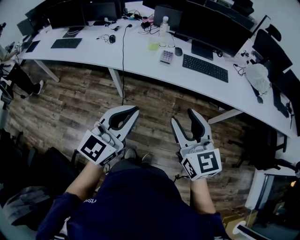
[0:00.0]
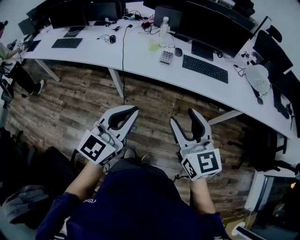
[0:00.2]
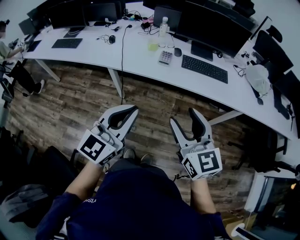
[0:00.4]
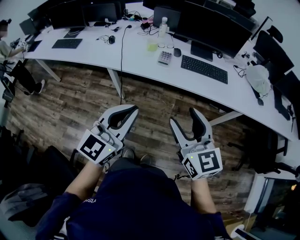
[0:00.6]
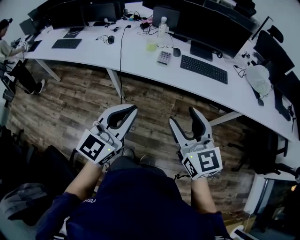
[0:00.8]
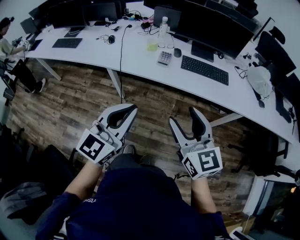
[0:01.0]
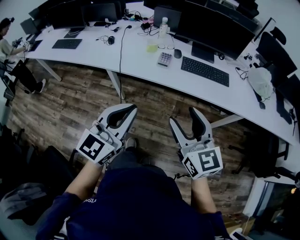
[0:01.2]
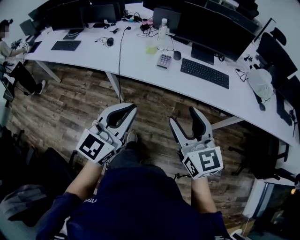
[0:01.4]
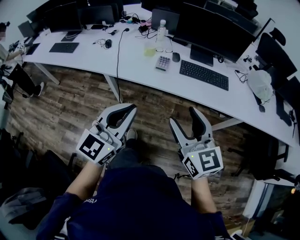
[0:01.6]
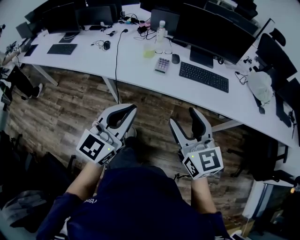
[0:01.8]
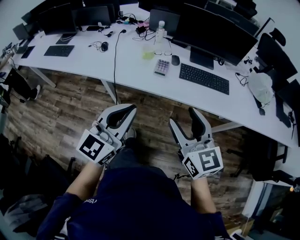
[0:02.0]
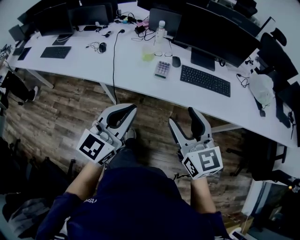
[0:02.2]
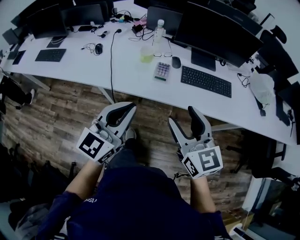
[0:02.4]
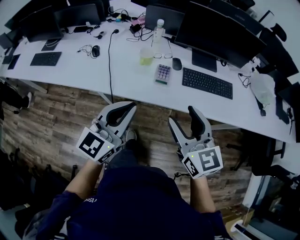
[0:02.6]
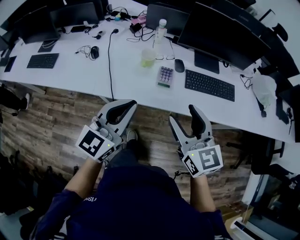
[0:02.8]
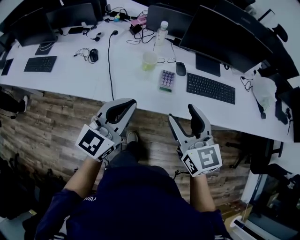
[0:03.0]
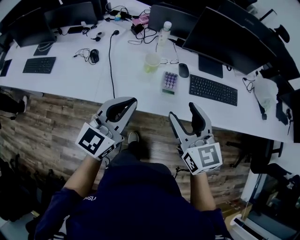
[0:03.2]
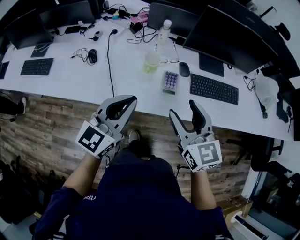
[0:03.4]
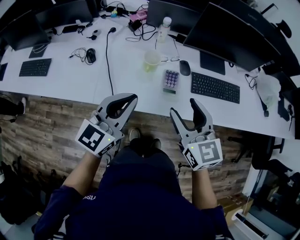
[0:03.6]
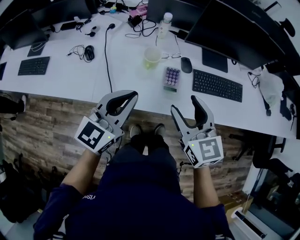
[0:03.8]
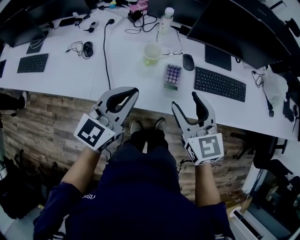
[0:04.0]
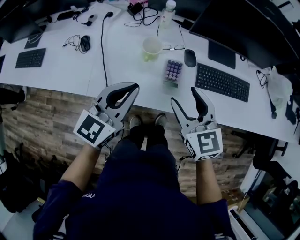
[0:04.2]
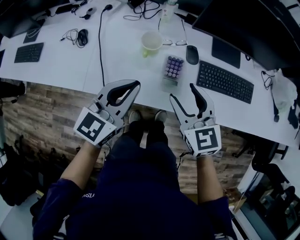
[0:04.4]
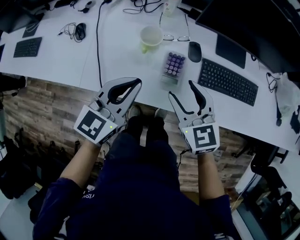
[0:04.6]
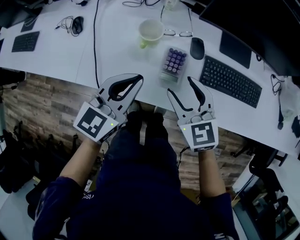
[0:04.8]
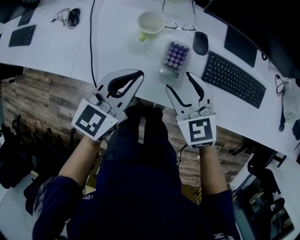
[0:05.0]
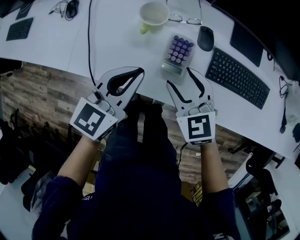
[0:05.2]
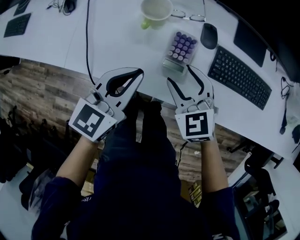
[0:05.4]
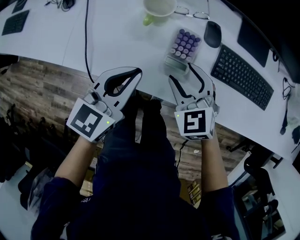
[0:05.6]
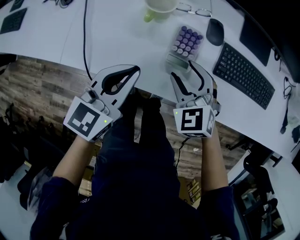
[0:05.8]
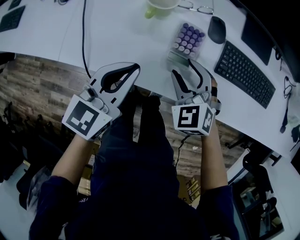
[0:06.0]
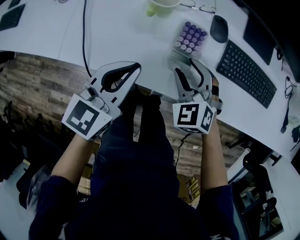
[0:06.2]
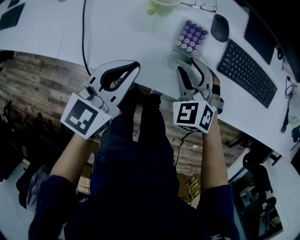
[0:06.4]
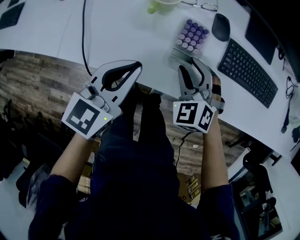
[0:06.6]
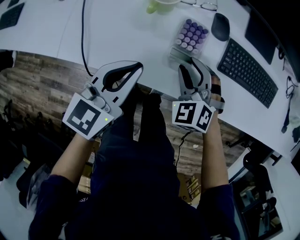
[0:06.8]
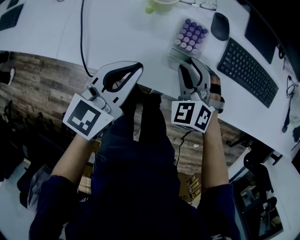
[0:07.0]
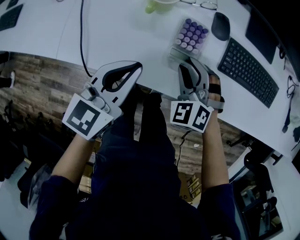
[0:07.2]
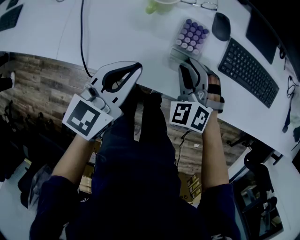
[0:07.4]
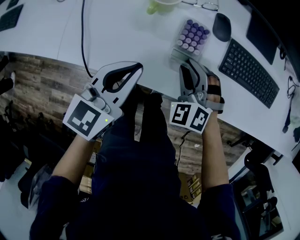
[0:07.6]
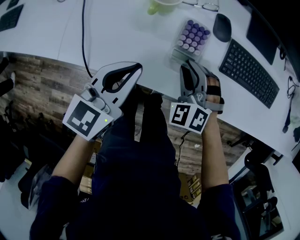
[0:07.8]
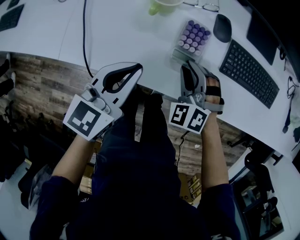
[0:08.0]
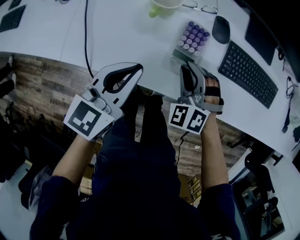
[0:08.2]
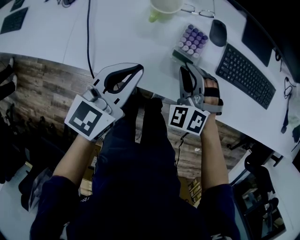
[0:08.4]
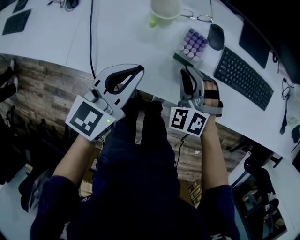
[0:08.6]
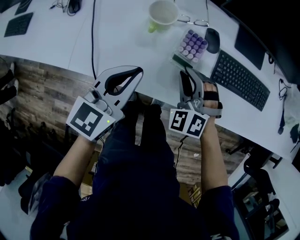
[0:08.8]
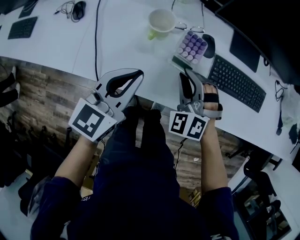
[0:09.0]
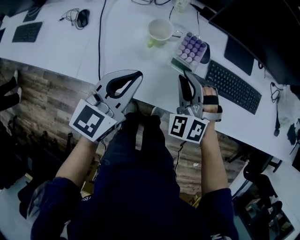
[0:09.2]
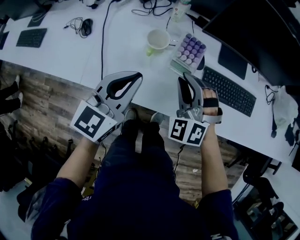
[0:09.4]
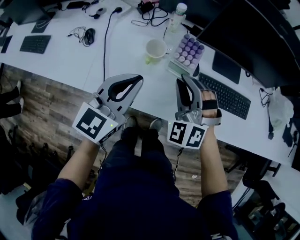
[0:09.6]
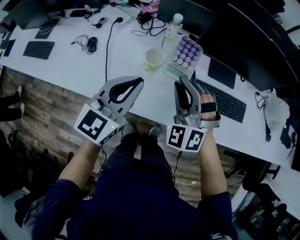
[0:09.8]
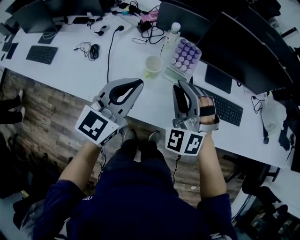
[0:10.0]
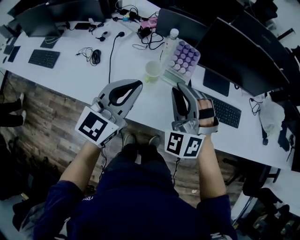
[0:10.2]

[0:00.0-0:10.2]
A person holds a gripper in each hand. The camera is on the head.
0:00.0 to 0:01.4: The grippers both shift forward by some 5 cm.
0:01.4 to 0:03.0: Both grippers travel together forward and to the left, roughly 30 cm.
0:03.0 to 0:04.4: The two grippers go roughly 15 cm forward and downward.
0:04.4 to 0:05.8: Both grippers move downward, approximately 15 cm. The right gripper rotates about 30 degrees.
0:05.8 to 0:07.2: The grippers stay close to where they were, moving slightly.
0:07.2 to 0:08.8: The left gripper moves approximately 5 cm, while the right gripper travels upward by about 5 cm.
0:08.8 to 0:10.2: The grippers both shift upward by about 25 cm. The right gripper rotates approximately 20 degrees. The left gripper changes its angle by approximately 20 degrees.

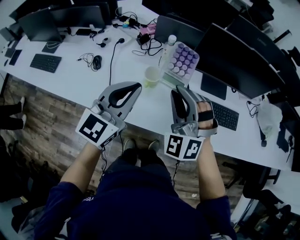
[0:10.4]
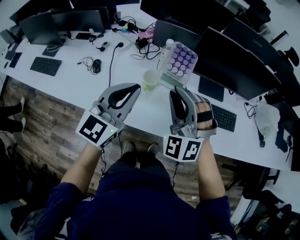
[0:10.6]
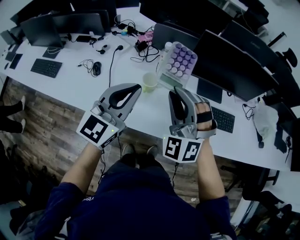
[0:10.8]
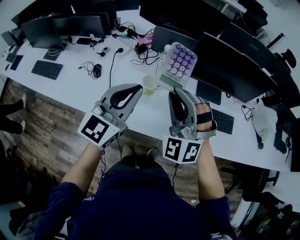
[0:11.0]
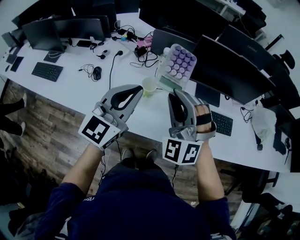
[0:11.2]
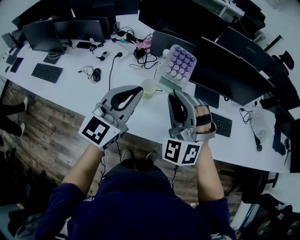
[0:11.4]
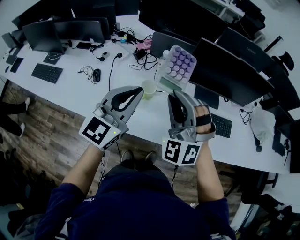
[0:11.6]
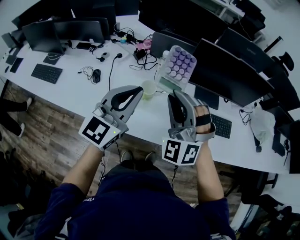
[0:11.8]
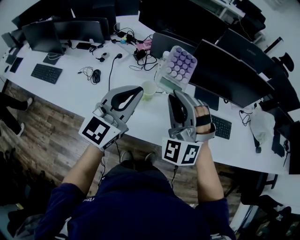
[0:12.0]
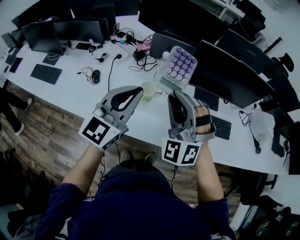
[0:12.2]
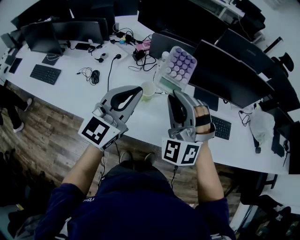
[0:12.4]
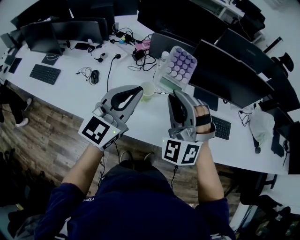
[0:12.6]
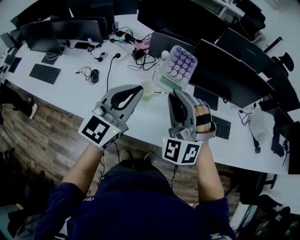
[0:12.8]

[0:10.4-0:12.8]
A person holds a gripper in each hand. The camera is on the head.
0:10.4 to 0:11.6: The right gripper travels upward by about 5 cm.
0:11.6 to 0:12.8: There are only small adjustments of the grippers.

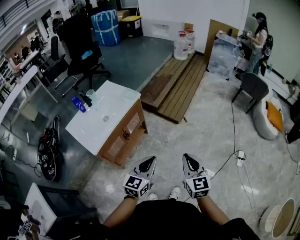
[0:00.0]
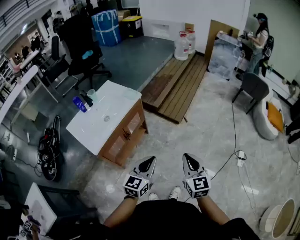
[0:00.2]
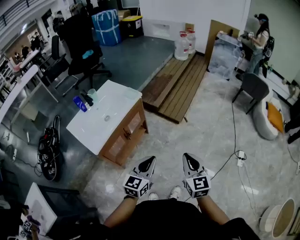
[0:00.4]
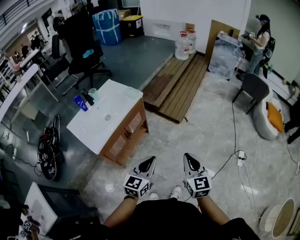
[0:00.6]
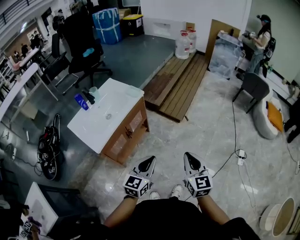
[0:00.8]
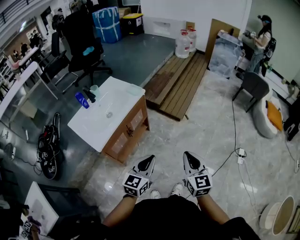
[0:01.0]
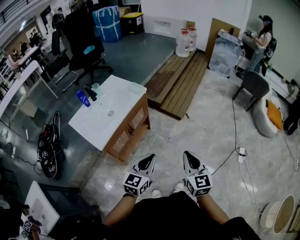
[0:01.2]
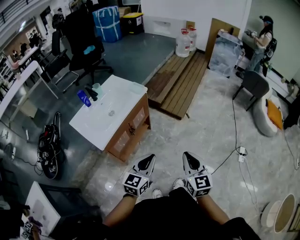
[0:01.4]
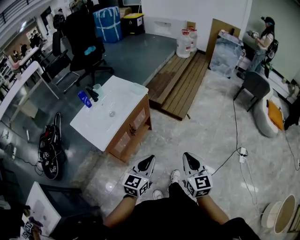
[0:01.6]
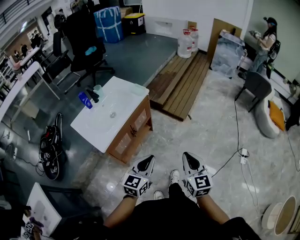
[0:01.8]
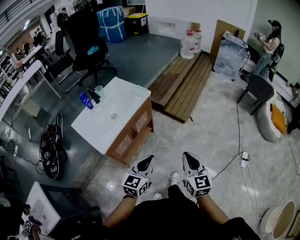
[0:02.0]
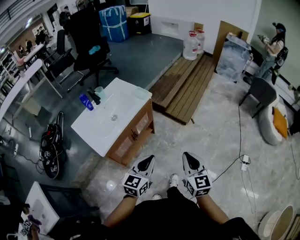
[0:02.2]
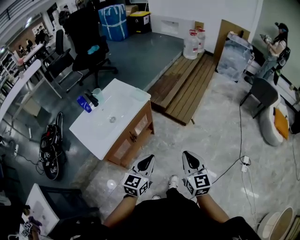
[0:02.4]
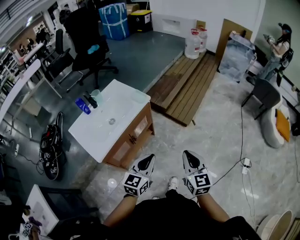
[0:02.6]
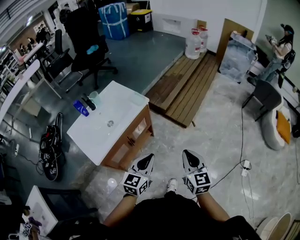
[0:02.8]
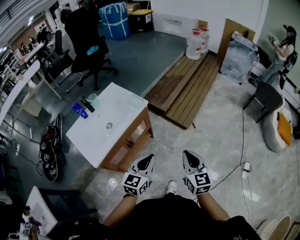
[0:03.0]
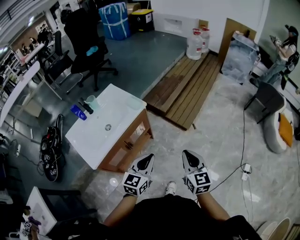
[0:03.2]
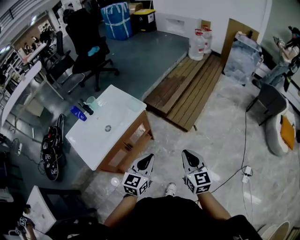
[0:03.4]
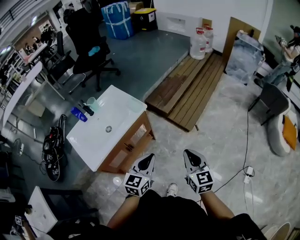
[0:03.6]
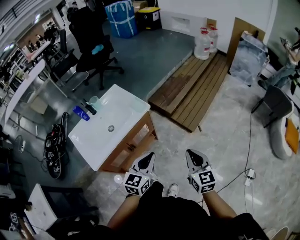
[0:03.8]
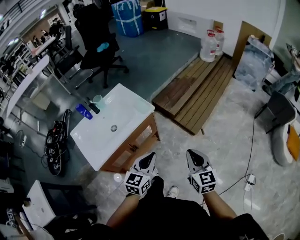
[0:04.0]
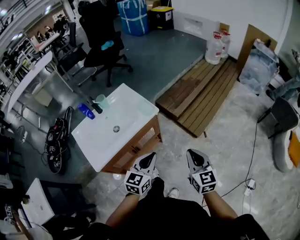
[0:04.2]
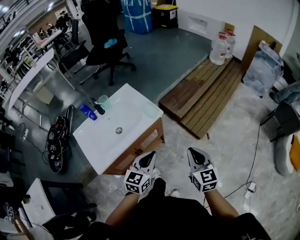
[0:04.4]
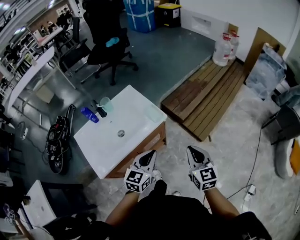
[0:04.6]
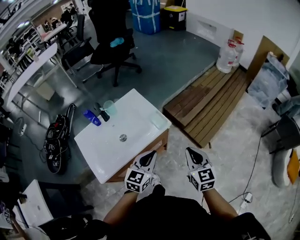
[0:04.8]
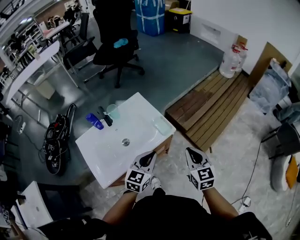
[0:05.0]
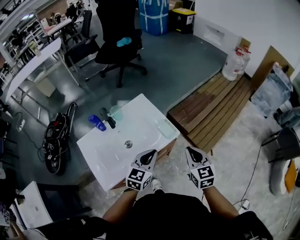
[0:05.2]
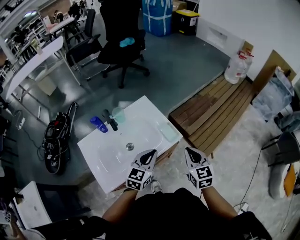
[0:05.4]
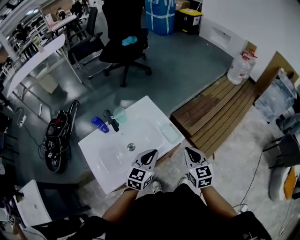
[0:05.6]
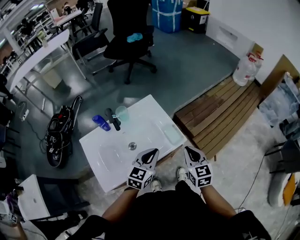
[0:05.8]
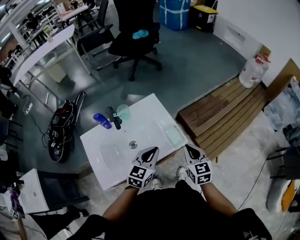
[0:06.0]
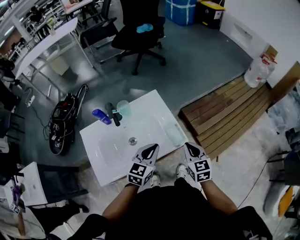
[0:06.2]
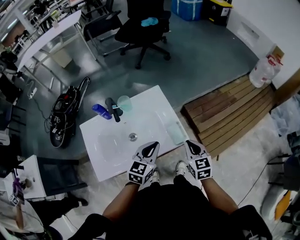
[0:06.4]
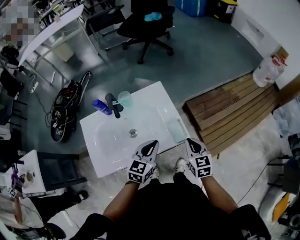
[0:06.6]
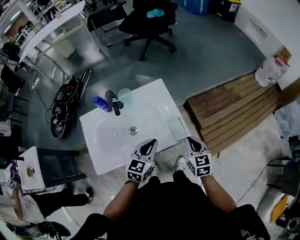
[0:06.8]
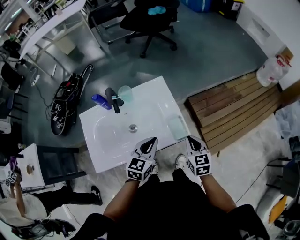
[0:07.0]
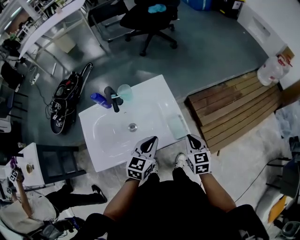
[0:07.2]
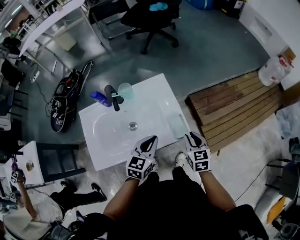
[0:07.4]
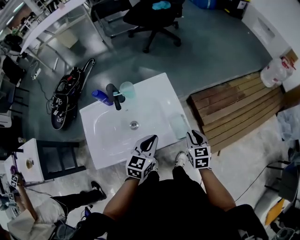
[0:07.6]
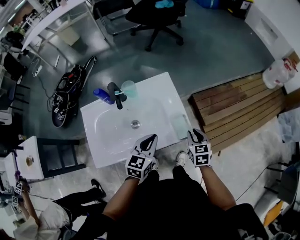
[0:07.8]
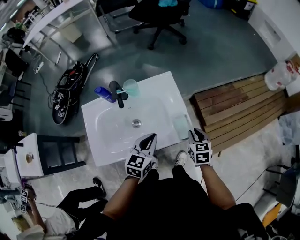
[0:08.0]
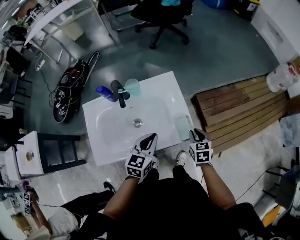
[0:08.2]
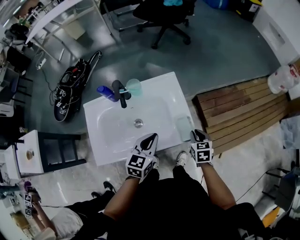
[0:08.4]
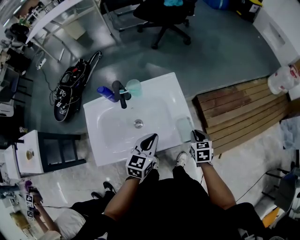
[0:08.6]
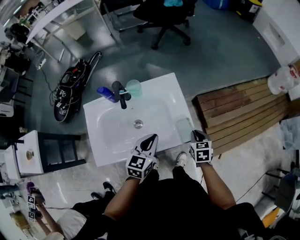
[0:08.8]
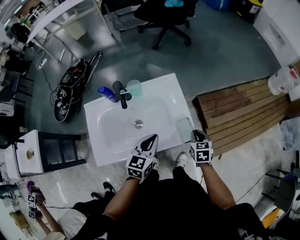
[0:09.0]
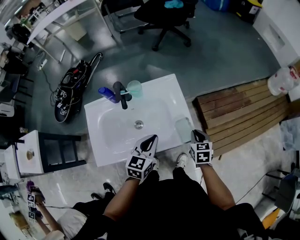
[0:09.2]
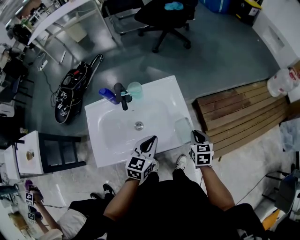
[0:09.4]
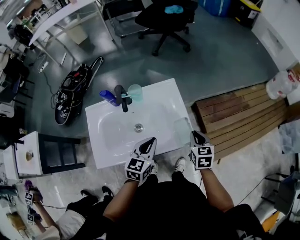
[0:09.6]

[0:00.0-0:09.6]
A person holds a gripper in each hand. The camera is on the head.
0:00.0 to 0:01.6: The grippers both shift to the left by roughly 5 cm.
0:01.6 to 0:03.2: The two grippers go approximately 20 cm forward.
0:03.2 to 0:04.8: The two grippers go approximately 20 cm forward and to the left.
0:04.8 to 0:06.4: The right gripper is displaced forward, downward and to the left by some 20 cm, and rotates roughly 20 degrees, while the left gripper heads forward and to the left, covering some 15 cm.
0:06.4 to 0:08.0: The right gripper goes about 10 cm downward.
0:08.0 to 0:09.6: The right gripper moves about 5 cm.

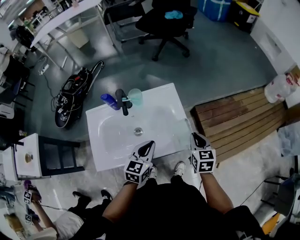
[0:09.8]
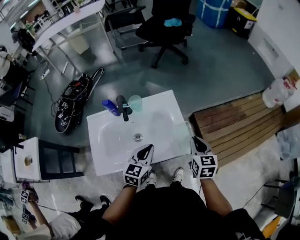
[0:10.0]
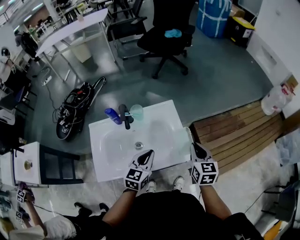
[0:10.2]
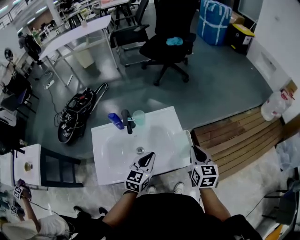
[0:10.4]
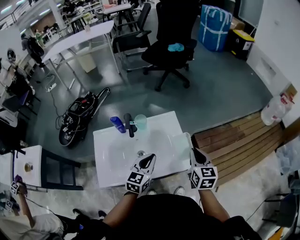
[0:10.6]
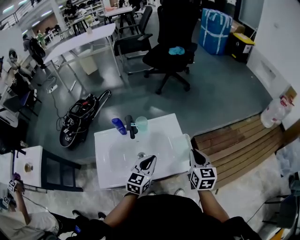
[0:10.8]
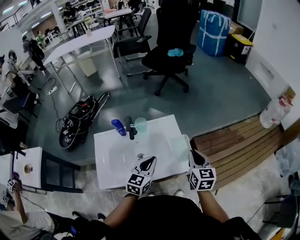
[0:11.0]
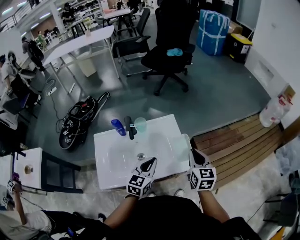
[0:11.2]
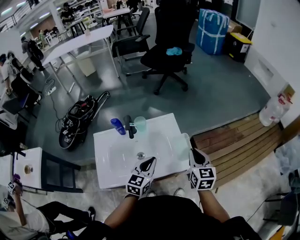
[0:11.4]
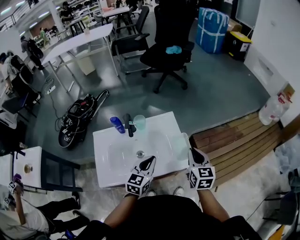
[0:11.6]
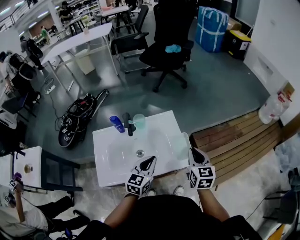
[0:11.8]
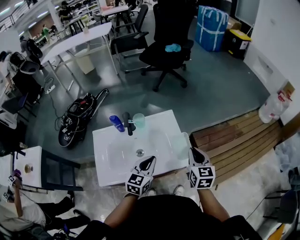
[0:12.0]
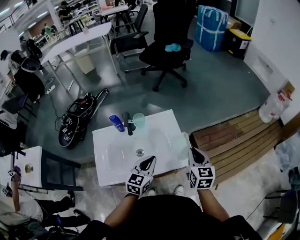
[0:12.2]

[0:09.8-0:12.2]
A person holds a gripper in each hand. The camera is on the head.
0:09.8 to 0:11.0: The left gripper travels upward by approximately 5 cm. Meanwhile the right gripper heads upward, covering approximately 10 cm.
0:11.0 to 0:12.2: The grippers stay close to where they were, moving slightly.
